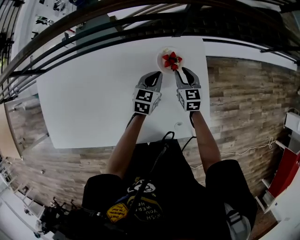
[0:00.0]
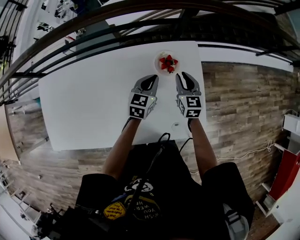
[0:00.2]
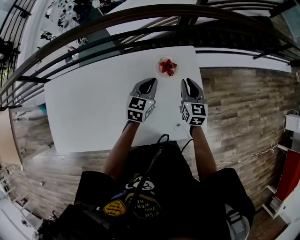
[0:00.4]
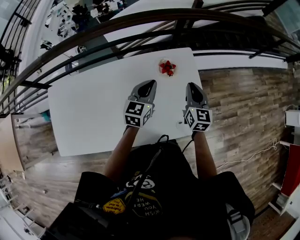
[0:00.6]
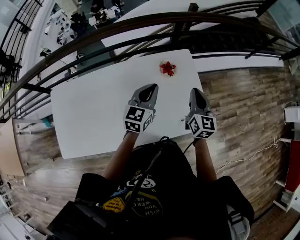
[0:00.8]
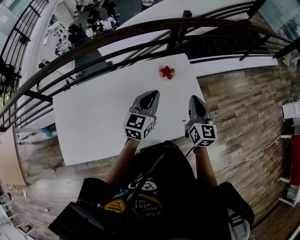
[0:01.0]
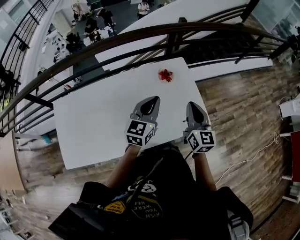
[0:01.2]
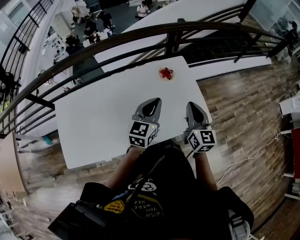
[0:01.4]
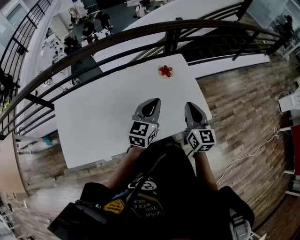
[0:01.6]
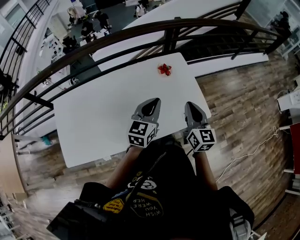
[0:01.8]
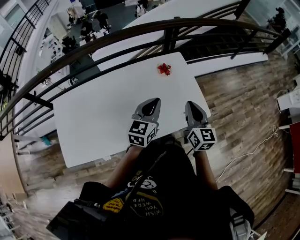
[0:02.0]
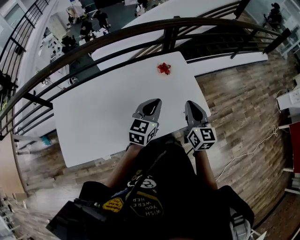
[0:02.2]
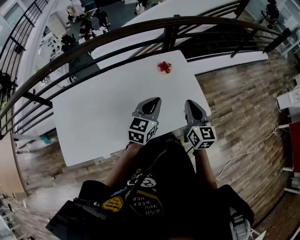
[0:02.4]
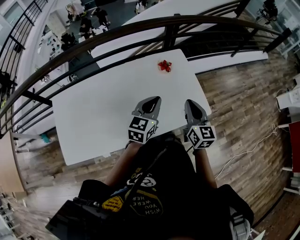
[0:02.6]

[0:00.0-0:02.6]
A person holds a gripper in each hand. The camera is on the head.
0:00.0 to 0:01.2: The grippers both shift upward and backward by about 40 cm. The left gripper rotates some 30 degrees. Meanwhile the right gripper swivels roughly 30 degrees, and closes its fingers.
0:01.2 to 0:02.6: The two grippers go approximately 5 cm backward.

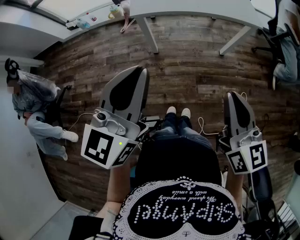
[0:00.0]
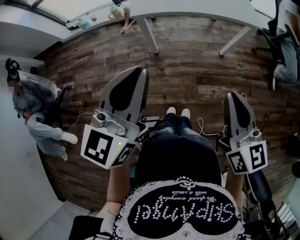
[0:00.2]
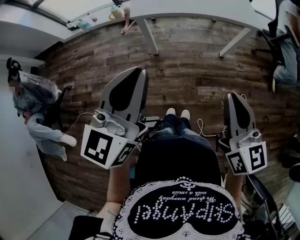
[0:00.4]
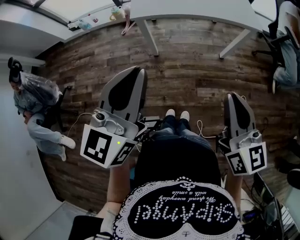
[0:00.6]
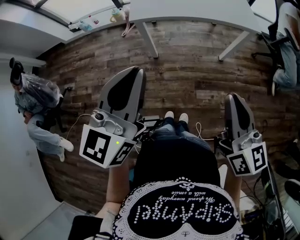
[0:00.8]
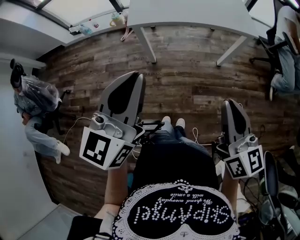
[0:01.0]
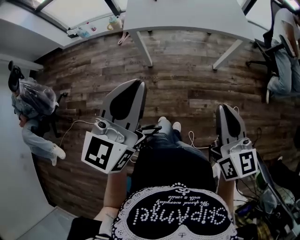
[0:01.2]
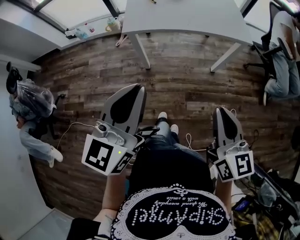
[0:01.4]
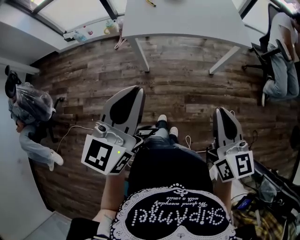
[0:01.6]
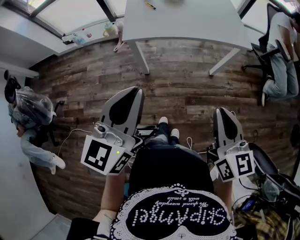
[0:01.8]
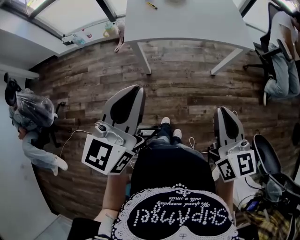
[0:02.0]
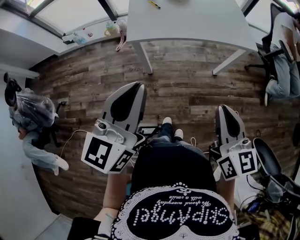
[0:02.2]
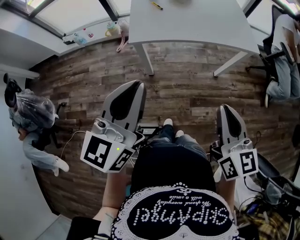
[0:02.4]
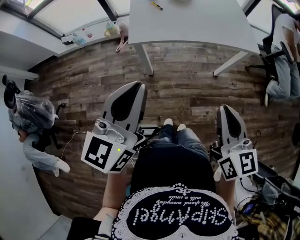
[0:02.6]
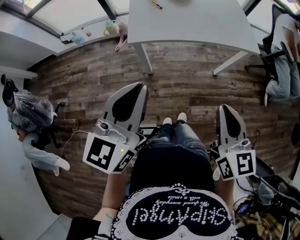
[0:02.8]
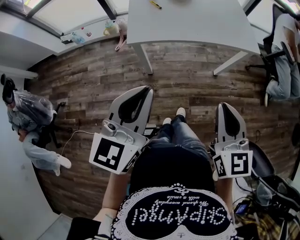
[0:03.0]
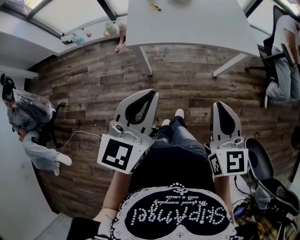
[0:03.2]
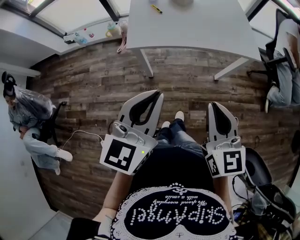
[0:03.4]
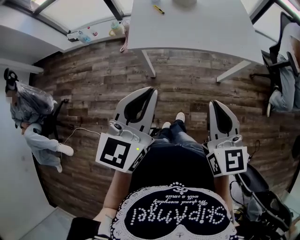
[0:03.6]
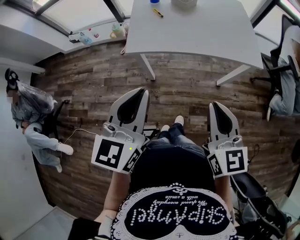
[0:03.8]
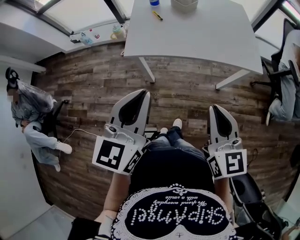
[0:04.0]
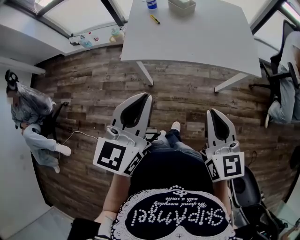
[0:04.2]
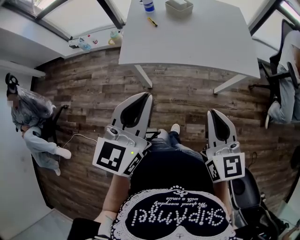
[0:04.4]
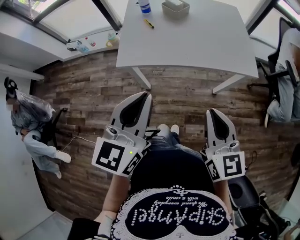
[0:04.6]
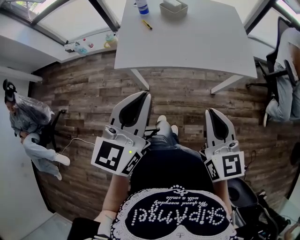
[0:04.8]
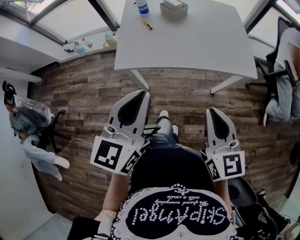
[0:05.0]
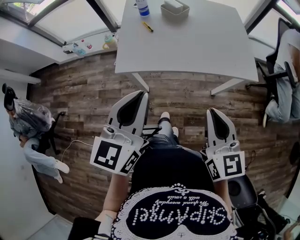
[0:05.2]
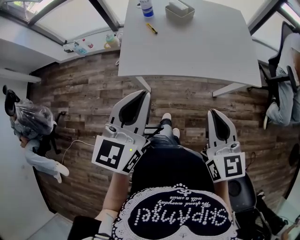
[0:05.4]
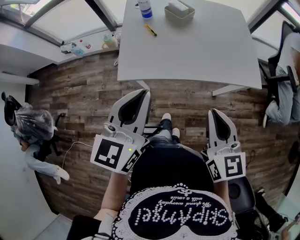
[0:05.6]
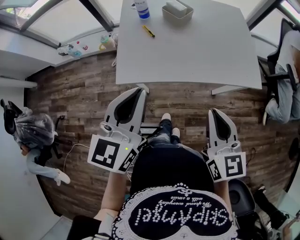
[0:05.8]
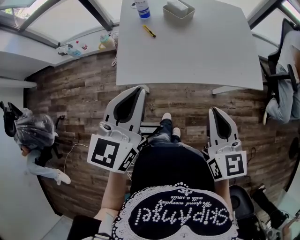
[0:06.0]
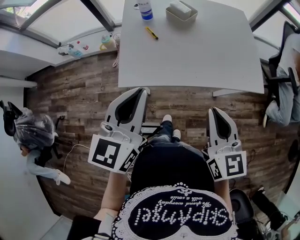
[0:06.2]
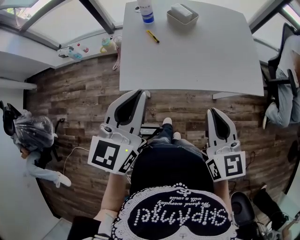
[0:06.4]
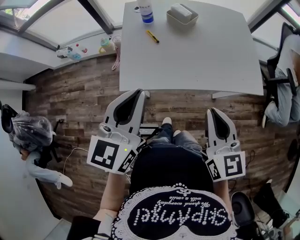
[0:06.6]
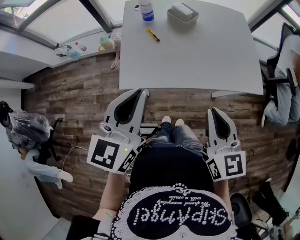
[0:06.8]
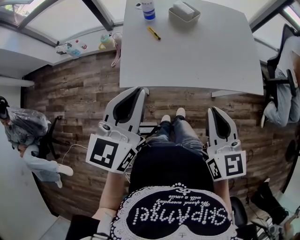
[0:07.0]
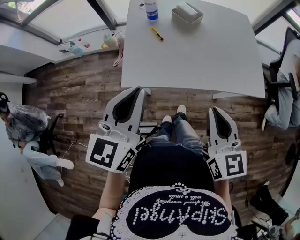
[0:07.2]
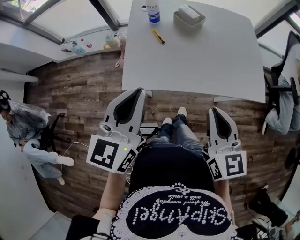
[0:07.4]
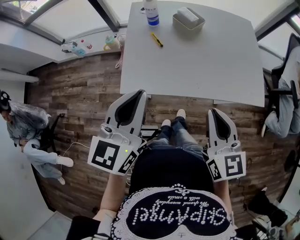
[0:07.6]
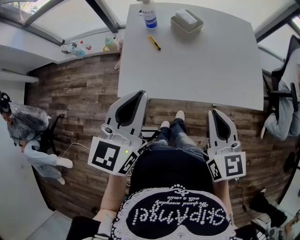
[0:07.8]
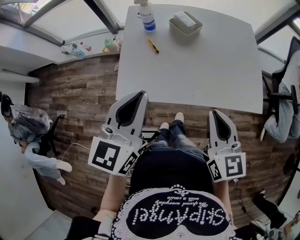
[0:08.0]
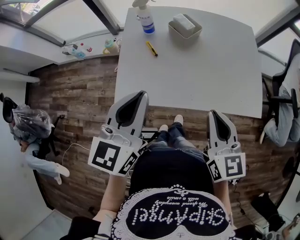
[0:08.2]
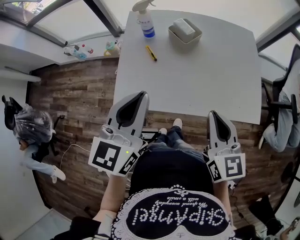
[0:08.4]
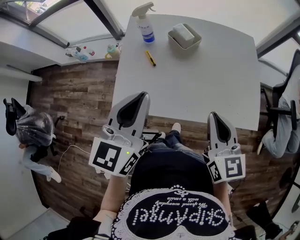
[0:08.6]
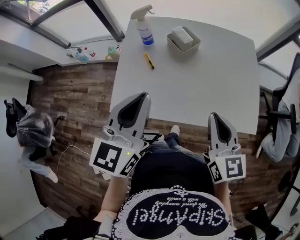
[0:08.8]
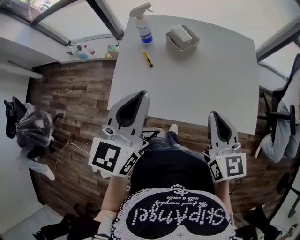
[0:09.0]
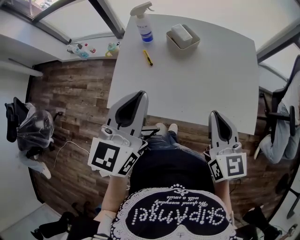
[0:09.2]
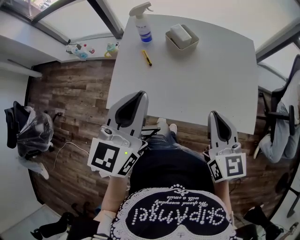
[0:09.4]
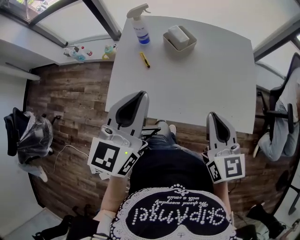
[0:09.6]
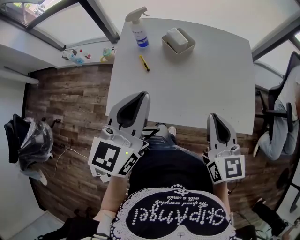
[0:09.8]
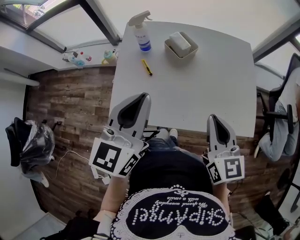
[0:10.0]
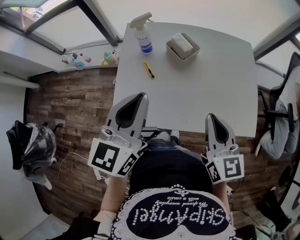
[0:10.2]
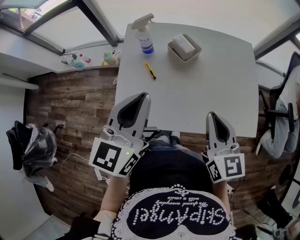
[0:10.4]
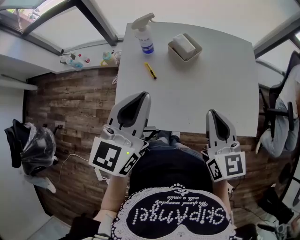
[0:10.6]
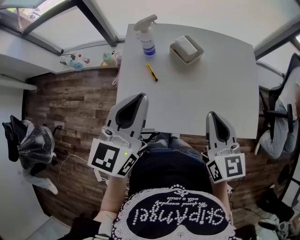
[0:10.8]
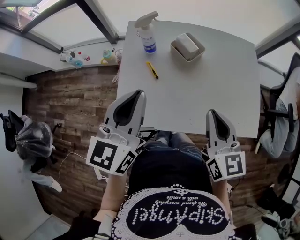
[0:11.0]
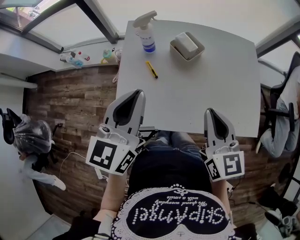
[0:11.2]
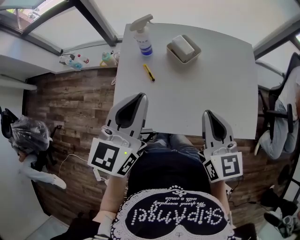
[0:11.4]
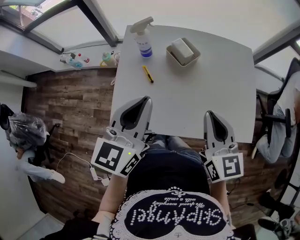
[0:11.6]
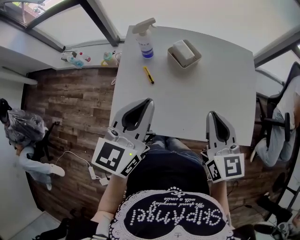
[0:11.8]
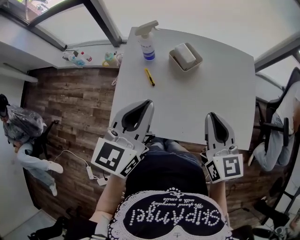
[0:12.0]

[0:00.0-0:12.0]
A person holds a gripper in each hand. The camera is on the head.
0:00.0 to 0:01.6: The right gripper ends up roughly 5 cm from where it was.
0:01.6 to 0:03.0: The right gripper shifts about 10 cm forward and to the left, while the left gripper shifts some 5 cm forward.
0:03.0 to 0:04.4: The left gripper is displaced forward and to the right by some 10 cm; the right gripper heads forward, covering about 10 cm.
0:04.4 to 0:06.0: The left gripper heads forward and to the left, covering approximately 15 cm, while the right gripper heads forward, covering roughly 10 cm.
0:06.0 to 0:07.6: The right gripper heads forward, covering approximately 5 cm.
0:07.6 to 0:09.0: The grippers both shift forward and to the right by some 10 cm.
0:09.0 to 0:10.4: The left gripper goes roughly 5 cm forward, while the right gripper moves approximately 5 cm.
0:10.4 to 0:12.0: There are only small adjustments of the grippers.

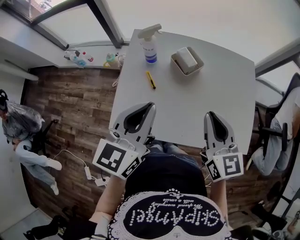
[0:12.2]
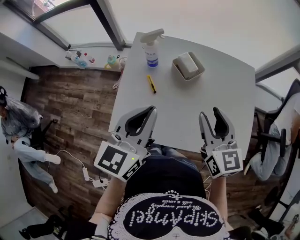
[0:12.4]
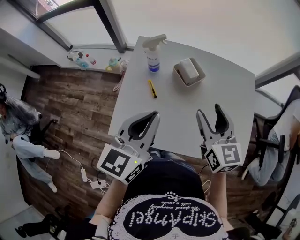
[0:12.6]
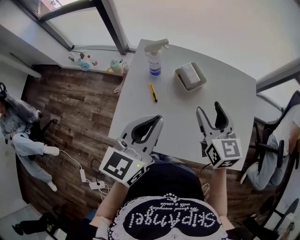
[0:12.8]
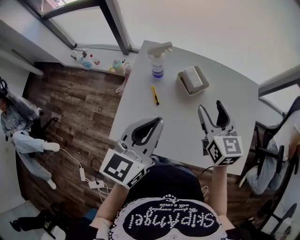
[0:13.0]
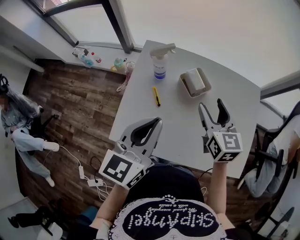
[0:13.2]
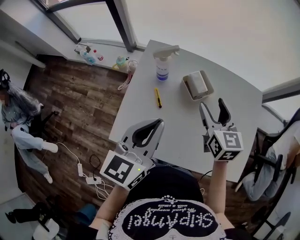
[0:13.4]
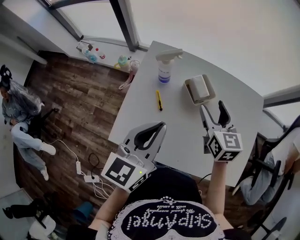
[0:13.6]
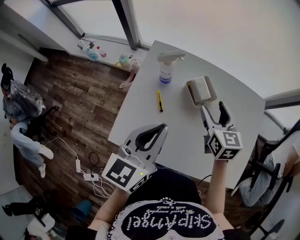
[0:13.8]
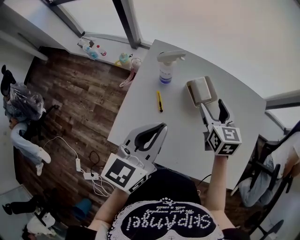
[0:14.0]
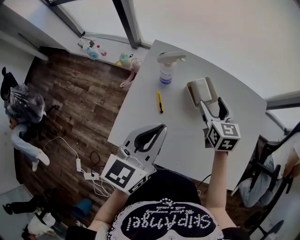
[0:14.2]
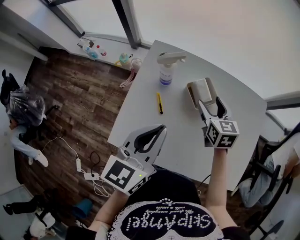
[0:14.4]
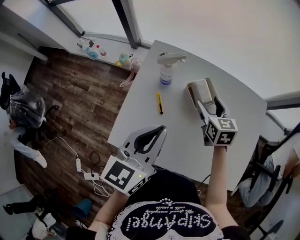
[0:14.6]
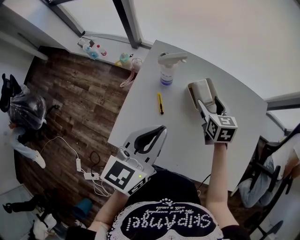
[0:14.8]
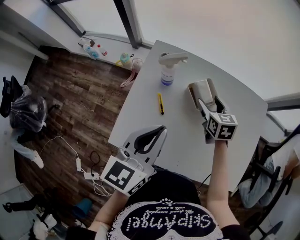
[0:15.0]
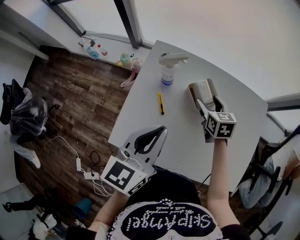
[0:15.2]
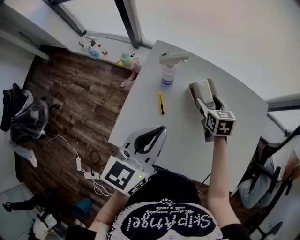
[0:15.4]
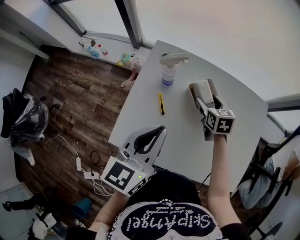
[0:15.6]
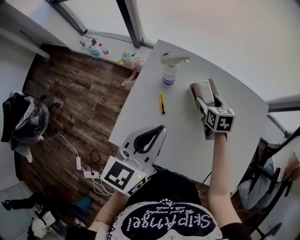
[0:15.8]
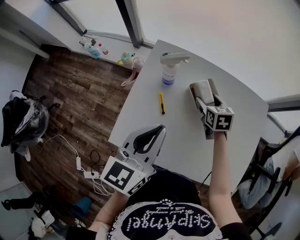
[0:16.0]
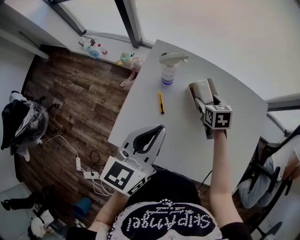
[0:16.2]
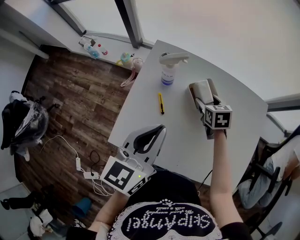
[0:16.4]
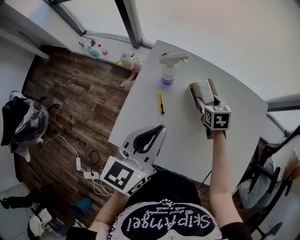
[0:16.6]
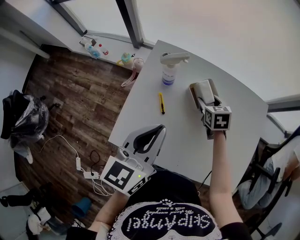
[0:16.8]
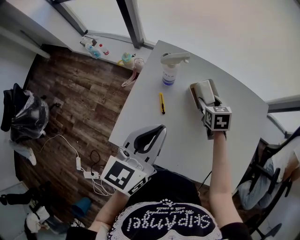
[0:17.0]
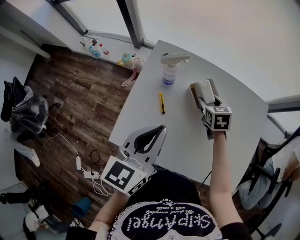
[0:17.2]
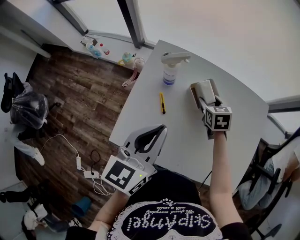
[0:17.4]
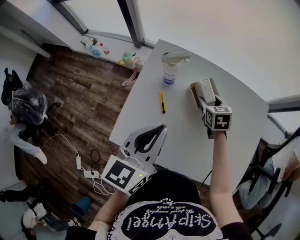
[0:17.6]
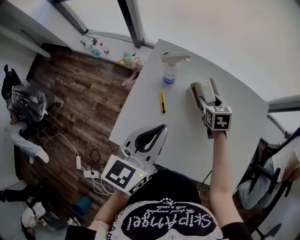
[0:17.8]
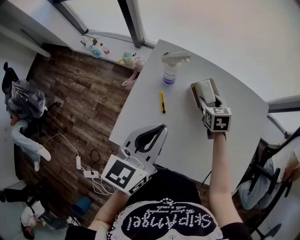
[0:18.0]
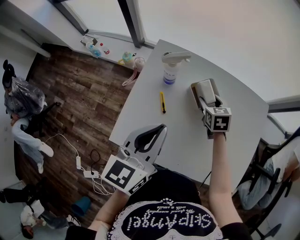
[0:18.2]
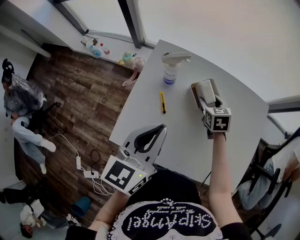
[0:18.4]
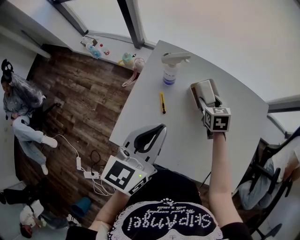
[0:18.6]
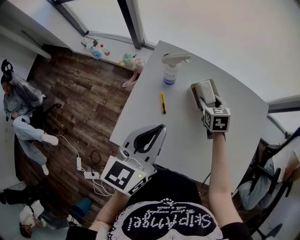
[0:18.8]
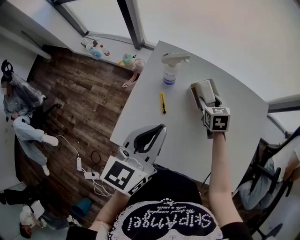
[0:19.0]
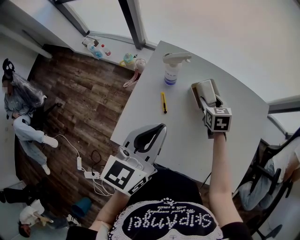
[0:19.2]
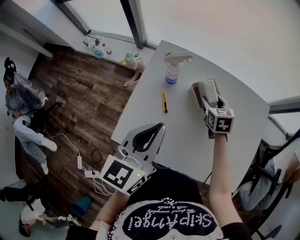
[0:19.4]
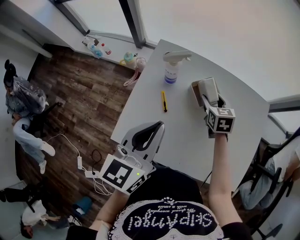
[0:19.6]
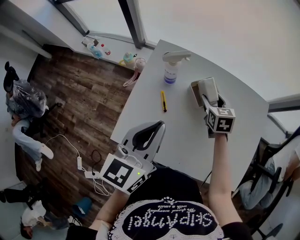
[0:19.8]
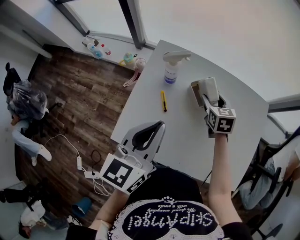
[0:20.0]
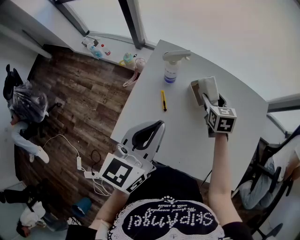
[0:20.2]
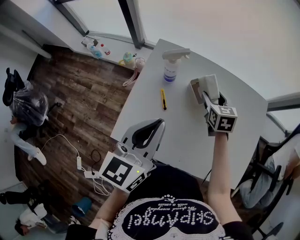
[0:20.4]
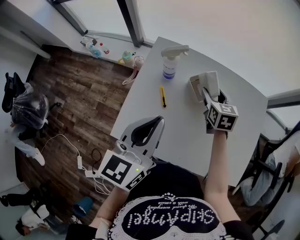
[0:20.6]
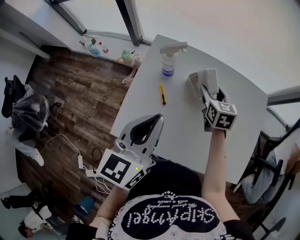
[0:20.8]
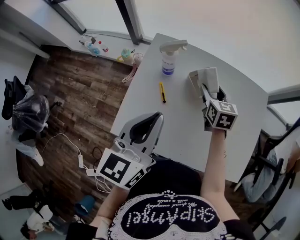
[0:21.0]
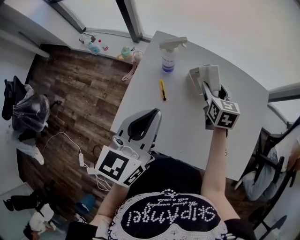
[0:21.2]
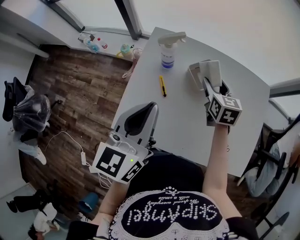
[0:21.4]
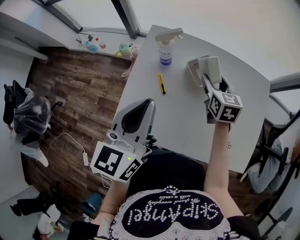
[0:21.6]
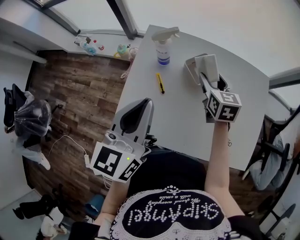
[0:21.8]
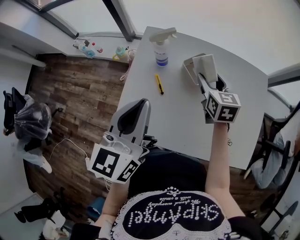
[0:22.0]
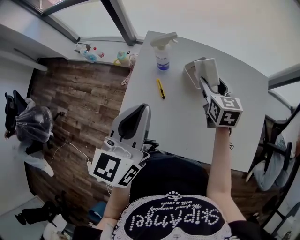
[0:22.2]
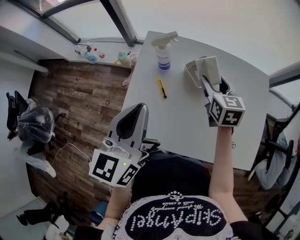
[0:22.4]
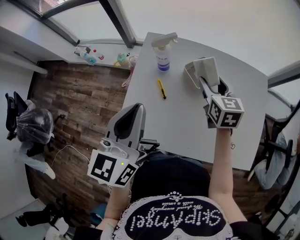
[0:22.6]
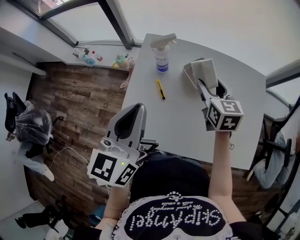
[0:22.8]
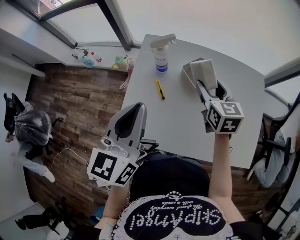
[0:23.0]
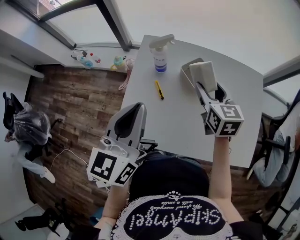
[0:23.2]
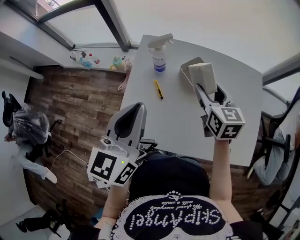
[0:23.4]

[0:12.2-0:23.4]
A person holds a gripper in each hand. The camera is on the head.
0:12.2 to 0:13.8: The right gripper goes approximately 20 cm forward and downward, and opens up; the left gripper moves forward, some 5 cm.
0:13.8 to 0:15.4: The right gripper moves downward and forward, about 10 cm.
0:15.4 to 0:17.0: The grippers make only small movements.
0:17.0 to 0:18.6: Both grippers stay put.
0:18.6 to 0:20.2: There are only small adjustments of the grippers.
0:20.2 to 0:21.8: The right gripper shifts about 5 cm upward.
0:21.8 to 0:23.4: The right gripper goes about 10 cm upward and backward.
